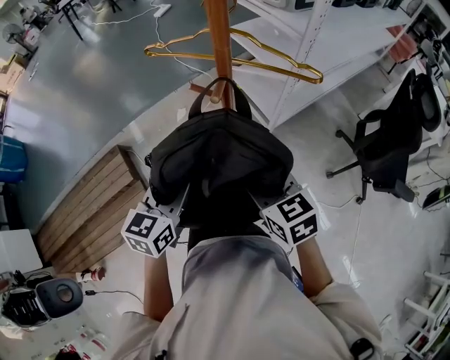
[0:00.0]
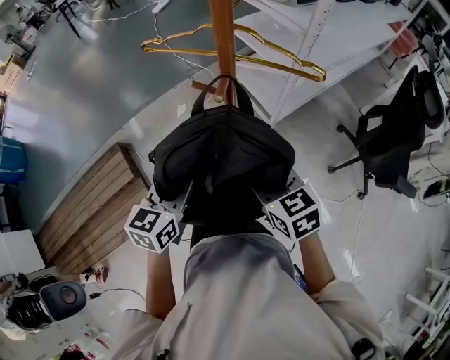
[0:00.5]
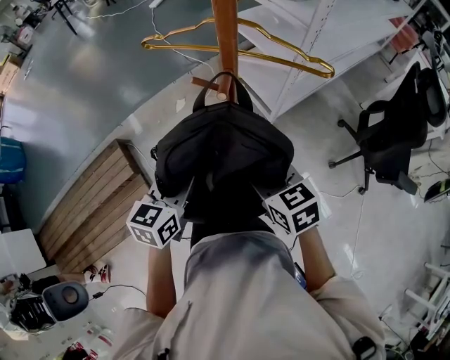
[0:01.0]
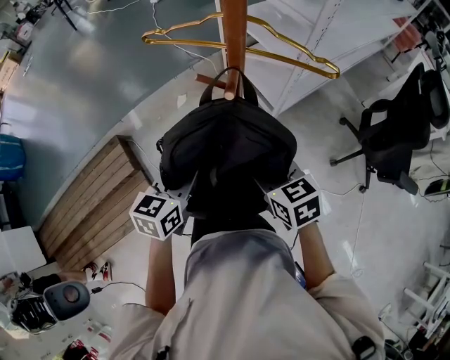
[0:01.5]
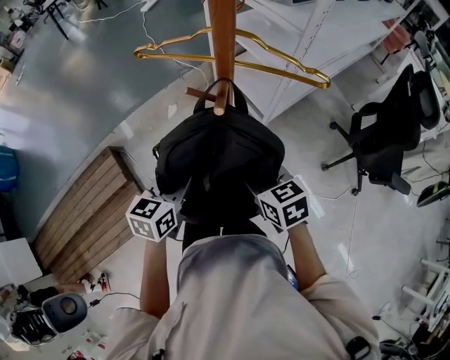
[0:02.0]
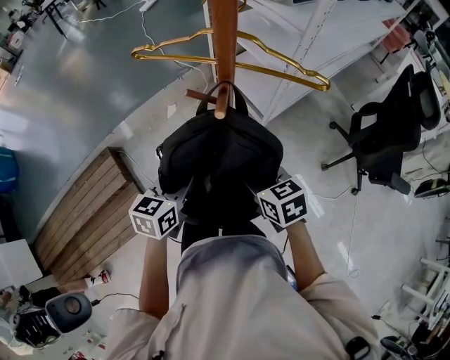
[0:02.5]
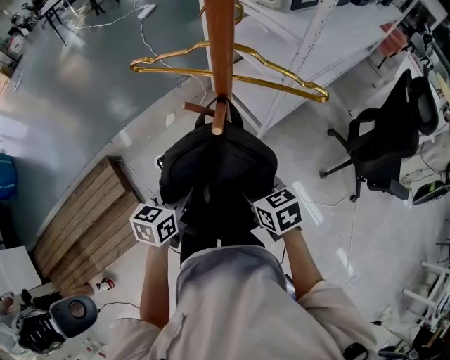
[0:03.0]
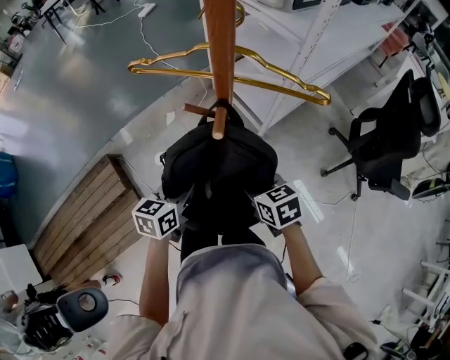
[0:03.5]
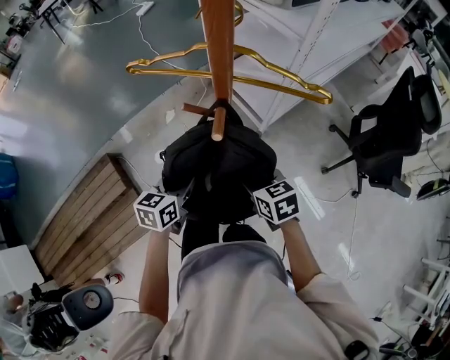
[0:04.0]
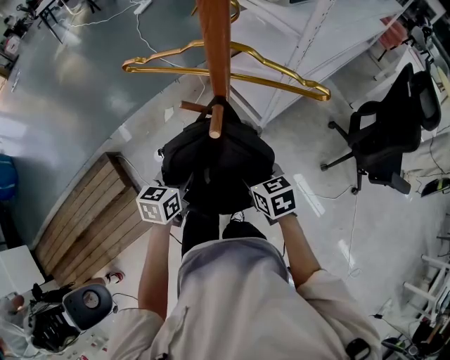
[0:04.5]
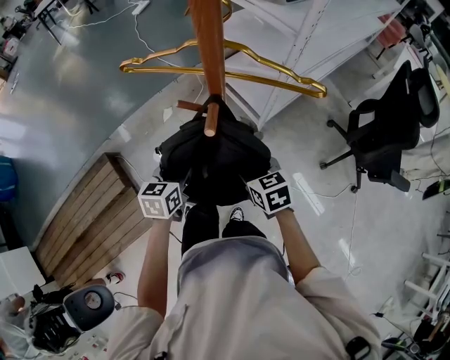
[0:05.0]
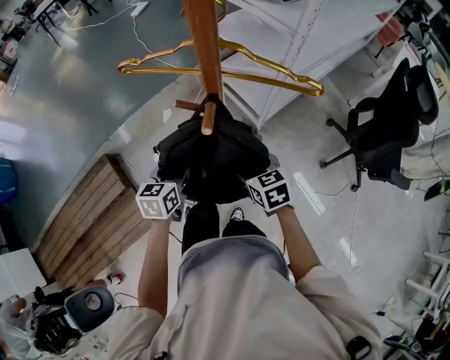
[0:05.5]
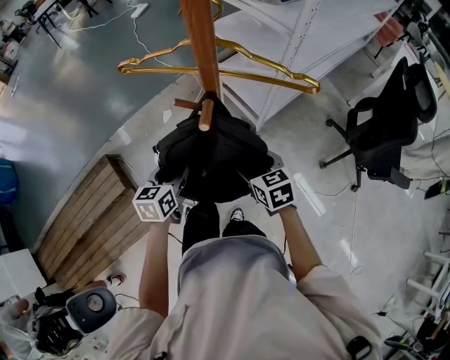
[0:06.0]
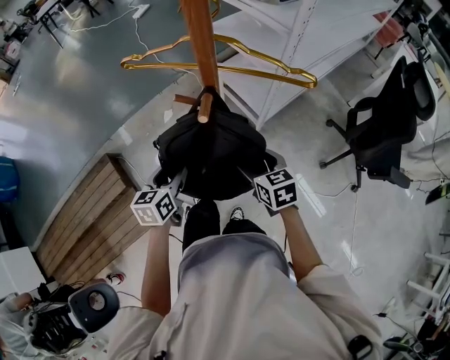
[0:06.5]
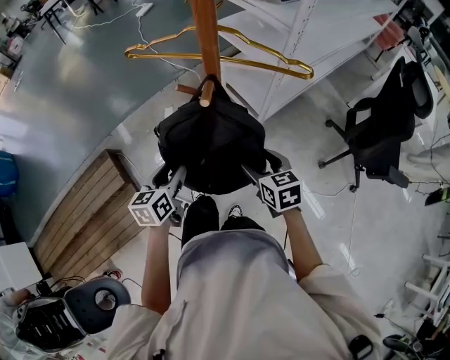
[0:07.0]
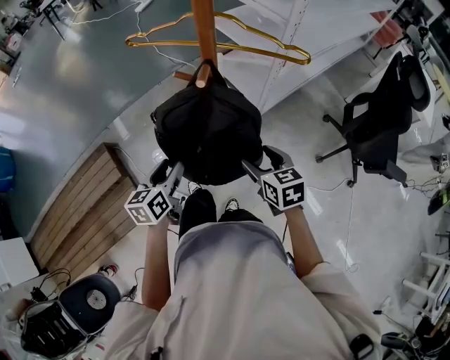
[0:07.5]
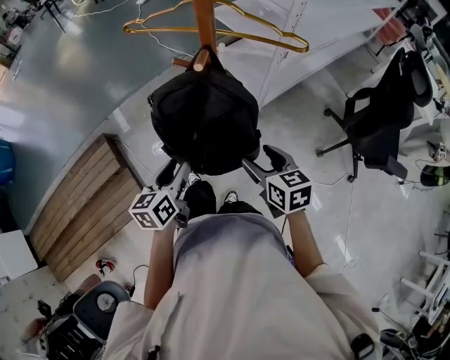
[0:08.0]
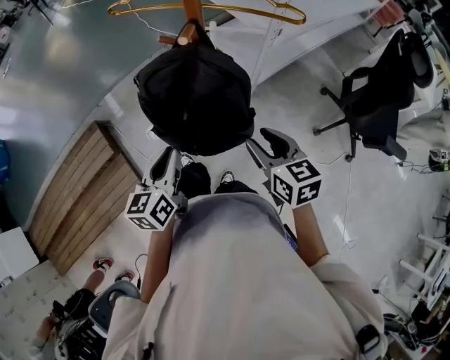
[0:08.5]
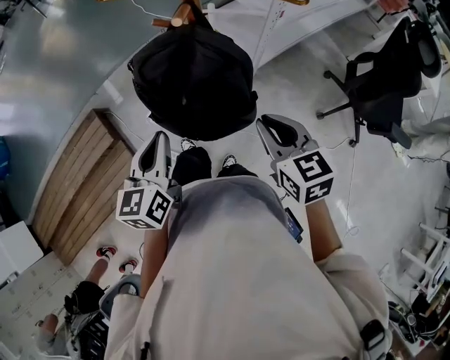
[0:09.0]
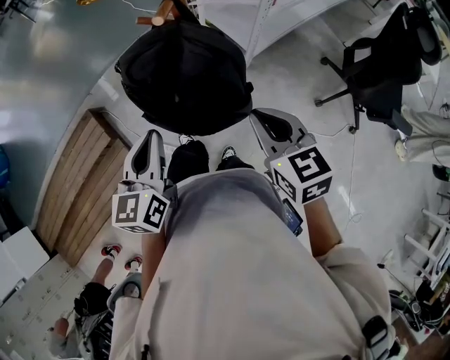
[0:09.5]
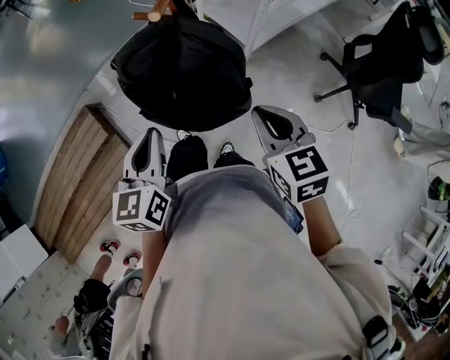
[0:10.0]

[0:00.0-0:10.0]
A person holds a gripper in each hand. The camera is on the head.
0:00.0 to 0:02.0: The left gripper heads downward and forward, covering approximately 10 cm; the right gripper travels downward by approximately 5 cm.
0:02.0 to 0:04.0: Both grippers travel together downward, some 5 cm.
0:04.0 to 0:06.0: The right gripper opens up. Meanwhile the left gripper opens.
0:06.0 to 0:08.0: The grippers both shift backward by approximately 10 cm.
0:08.0 to 0:10.0: The grippers both shift upward by roughly 5 cm. The right gripper closes its fingers. Meanwhile the left gripper closes up.

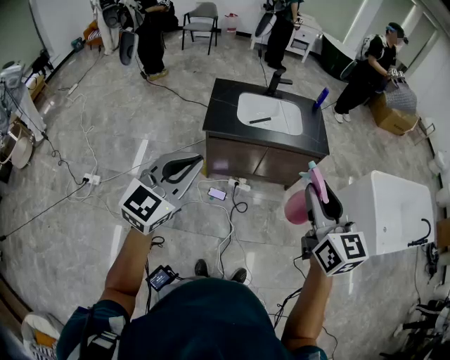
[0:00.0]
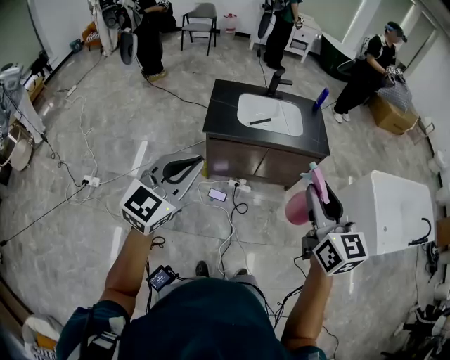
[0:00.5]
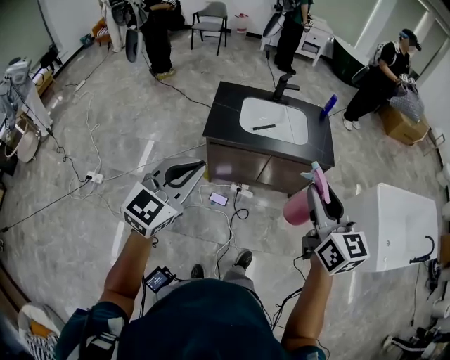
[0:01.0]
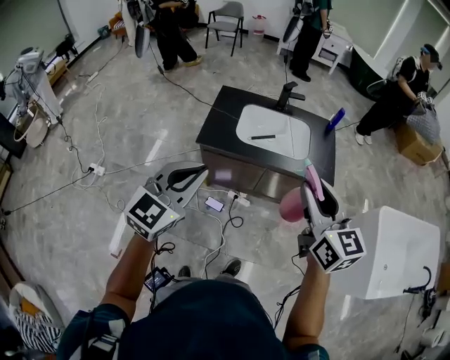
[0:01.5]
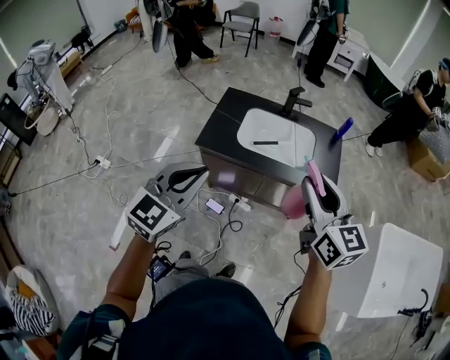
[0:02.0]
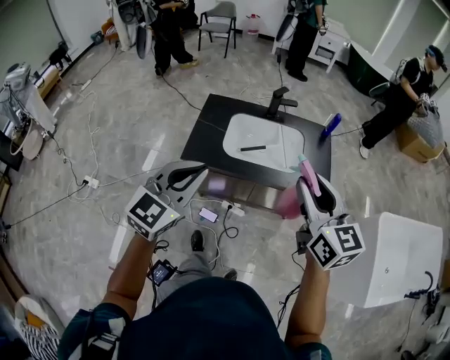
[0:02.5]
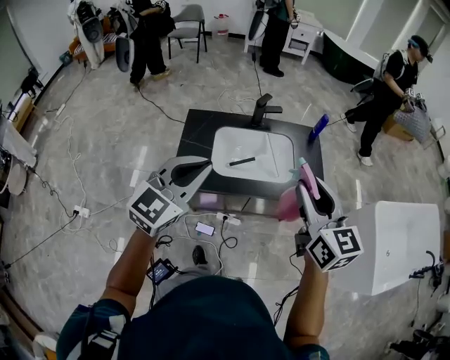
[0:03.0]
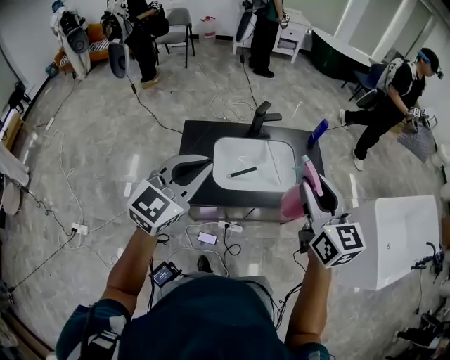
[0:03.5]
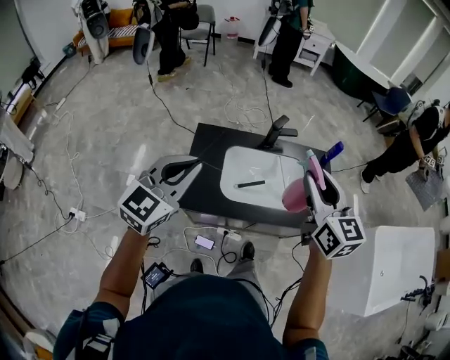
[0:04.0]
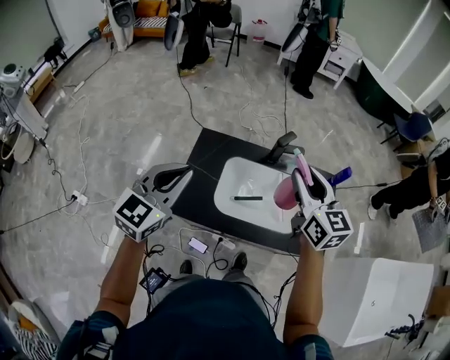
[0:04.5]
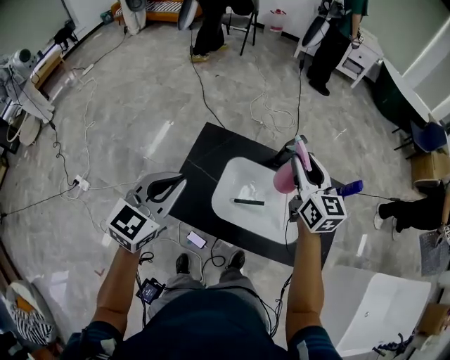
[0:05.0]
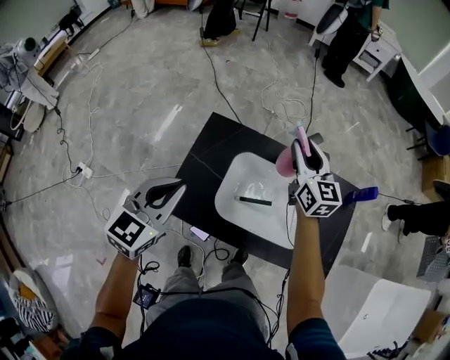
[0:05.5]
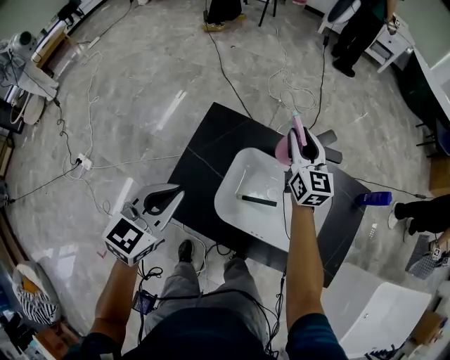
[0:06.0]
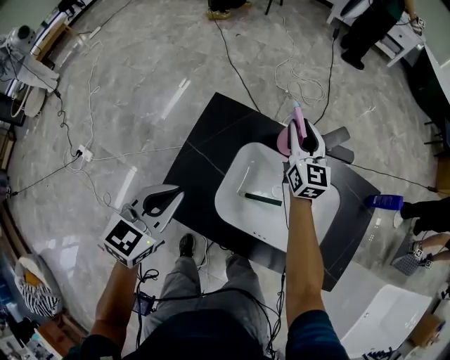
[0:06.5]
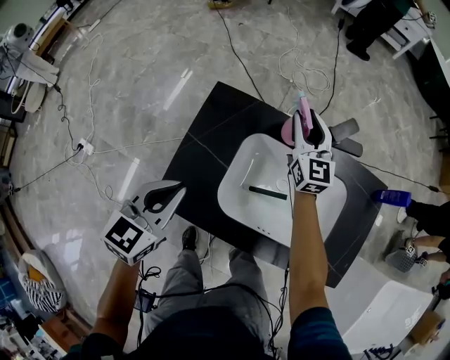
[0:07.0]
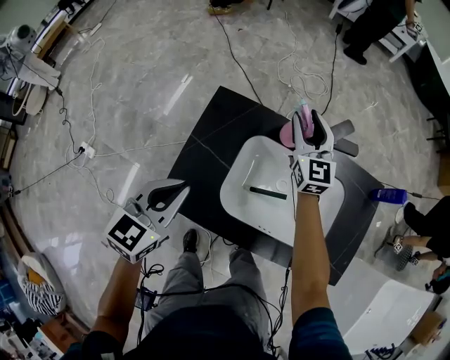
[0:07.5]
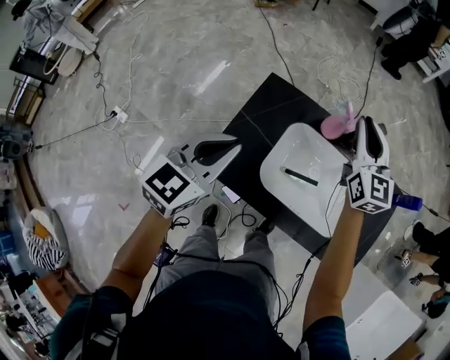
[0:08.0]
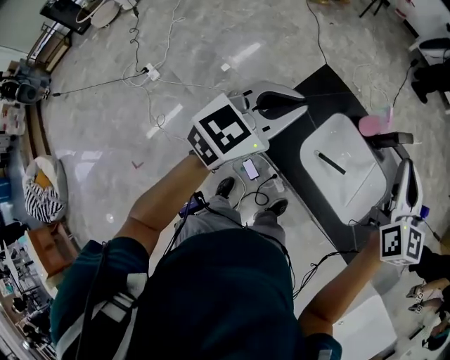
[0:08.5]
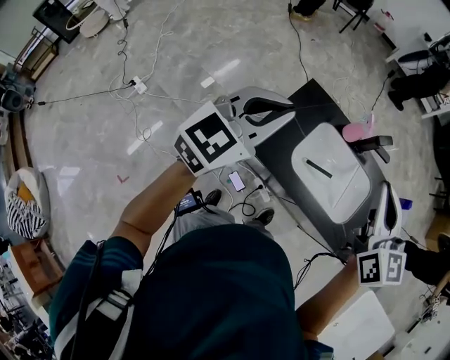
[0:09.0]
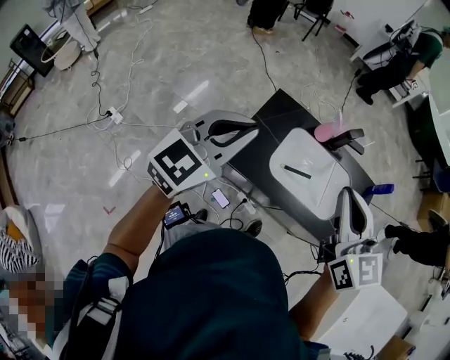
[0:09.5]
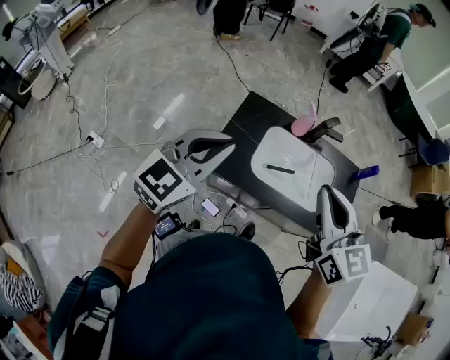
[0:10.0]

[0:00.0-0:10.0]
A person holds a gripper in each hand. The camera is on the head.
0:00.0 to 0:02.0: Both grippers move forward and to the right, some 30 cm.
0:02.0 to 0:04.0: Both grippers travel together forward and to the left, roughly 35 cm.
0:04.0 to 0:06.0: The right gripper heads forward and downward, covering approximately 50 cm; the left gripper travels downward and forward by some 25 cm, and turns by approximately 30 degrees.
0:06.0 to 0:08.0: The right gripper heads upward and backward, covering about 10 cm, while the left gripper travels downward and back again, about 5 cm each way.
0:08.0 to 0:10.0: The left gripper travels upward and backward by approximately 25 cm; the right gripper is displaced backward and upward by some 40 cm.

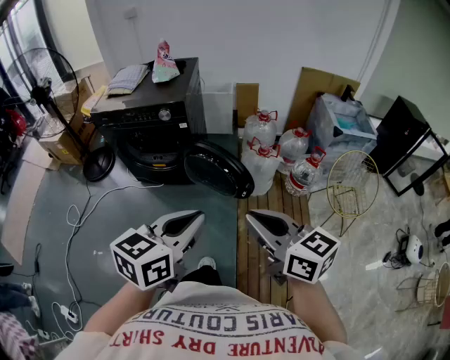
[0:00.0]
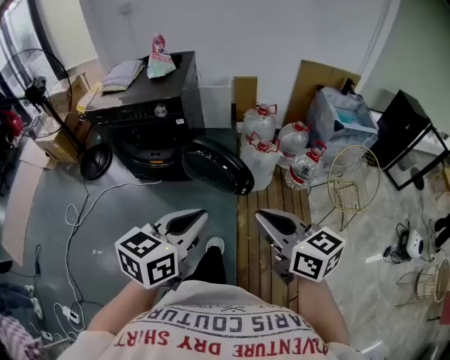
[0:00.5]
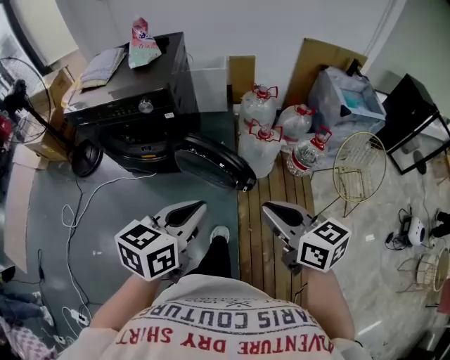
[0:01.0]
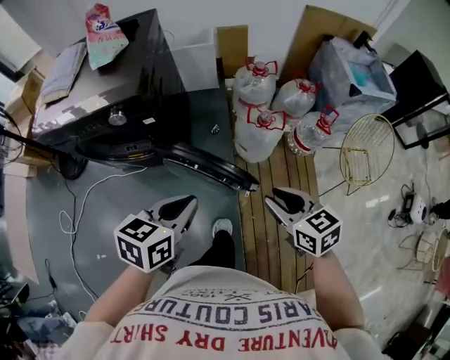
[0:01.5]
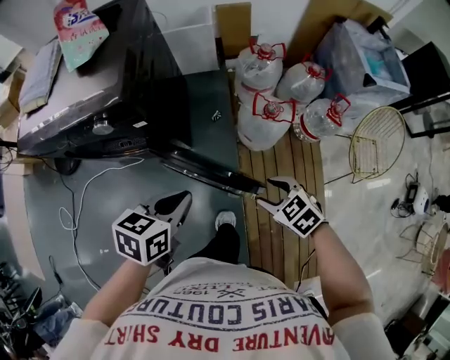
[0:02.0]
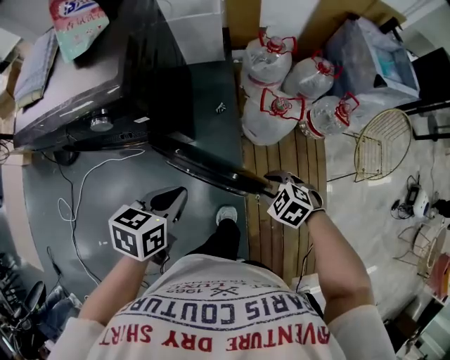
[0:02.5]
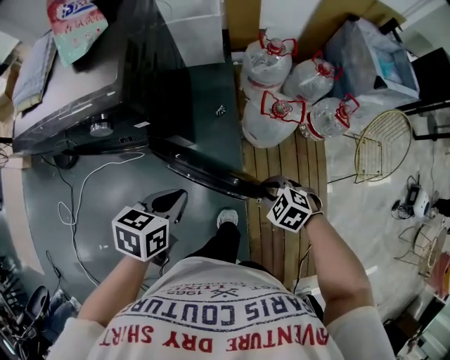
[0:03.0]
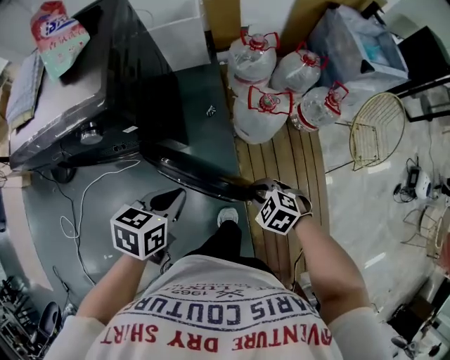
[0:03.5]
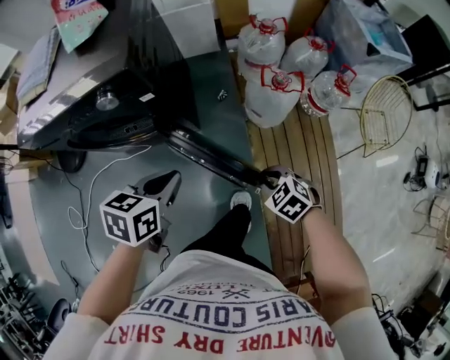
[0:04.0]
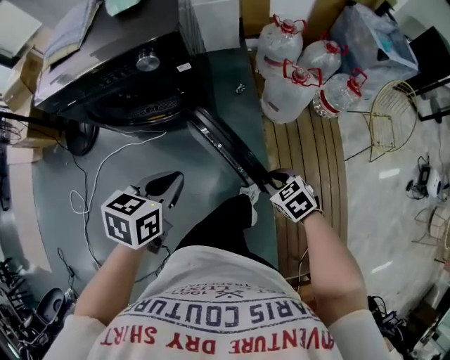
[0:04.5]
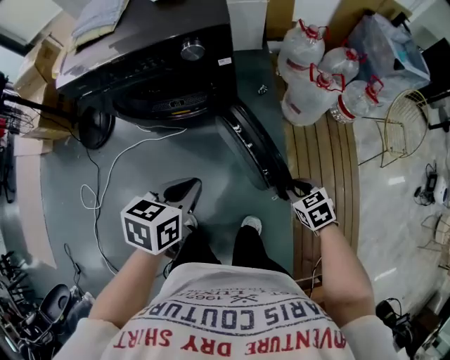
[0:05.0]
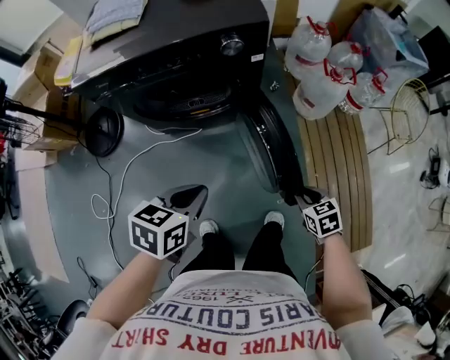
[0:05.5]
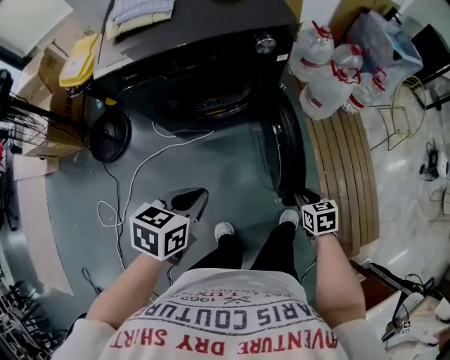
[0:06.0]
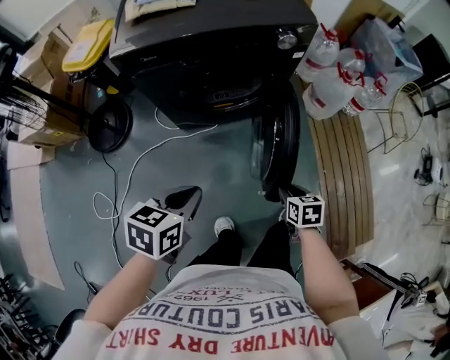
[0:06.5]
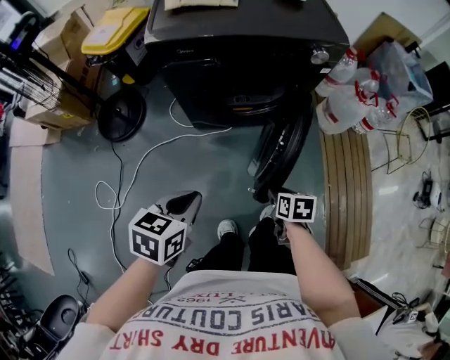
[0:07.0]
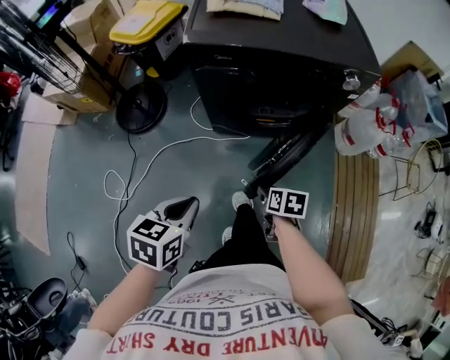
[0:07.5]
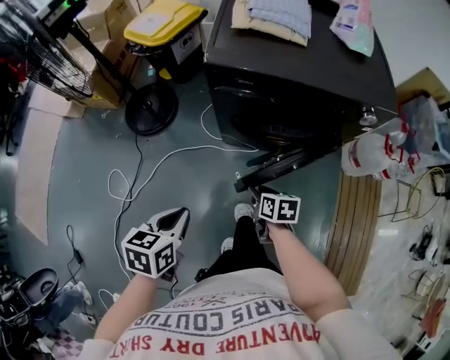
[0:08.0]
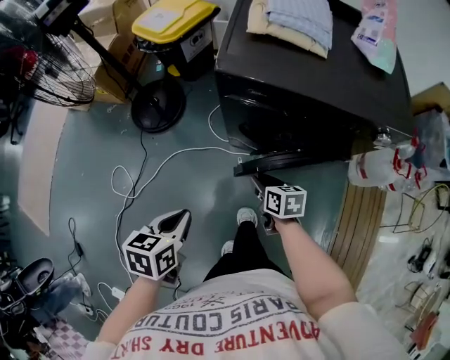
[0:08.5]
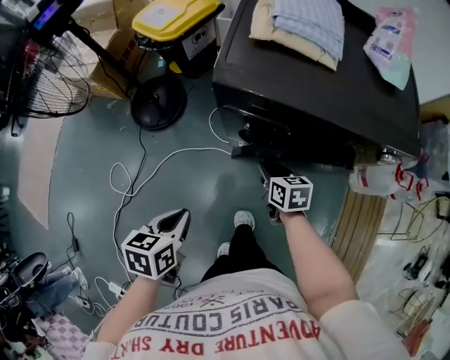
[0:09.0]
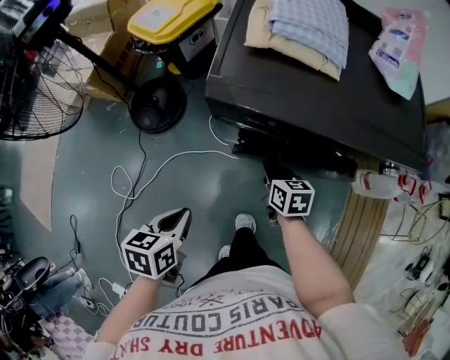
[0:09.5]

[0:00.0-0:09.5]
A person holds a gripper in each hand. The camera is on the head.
0:00.0 to 0:02.0: The left gripper heads forward and downward, covering some 40 cm, and rotates approximately 30 degrees, while the right gripper is displaced downward and forward by approximately 50 cm, tips its fingers downward by about 50 degrees, and opens.
0:02.0 to 0:04.0: The right gripper goes some 10 cm to the left and downward, and closes. Meanwhile the left gripper heads to the left, covering approximately 10 cm.
0:04.0 to 0:05.5: Both grippers travel together to the left and backward, approximately 25 cm. The right gripper rotates about 30 degrees.
0:05.5 to 0:07.5: Both grippers move to the left, approximately 35 cm. The right gripper rotates about 30 degrees.
0:07.5 to 0:09.5: The right gripper travels forward by roughly 25 cm, changes its angle by some 30 degrees, and closes up; the left gripper travels forward by about 15 cm, and swivels some 20 degrees.
